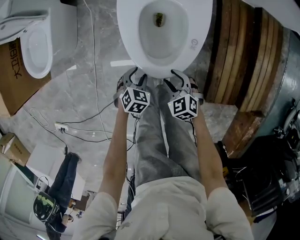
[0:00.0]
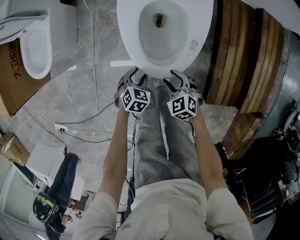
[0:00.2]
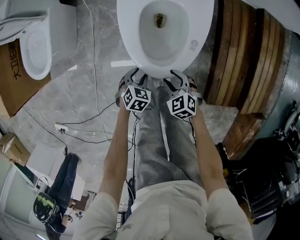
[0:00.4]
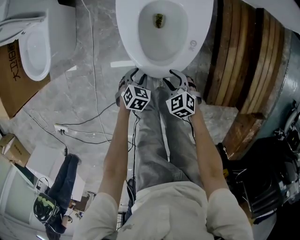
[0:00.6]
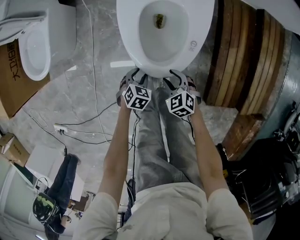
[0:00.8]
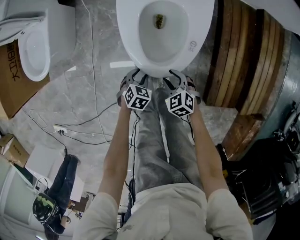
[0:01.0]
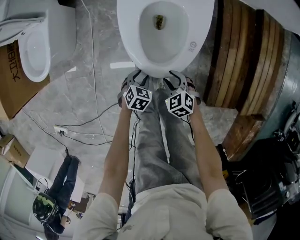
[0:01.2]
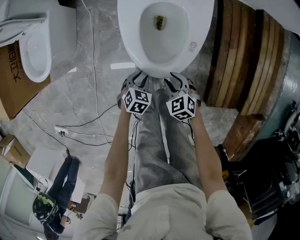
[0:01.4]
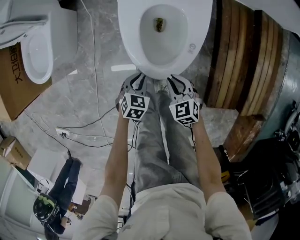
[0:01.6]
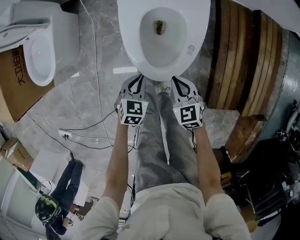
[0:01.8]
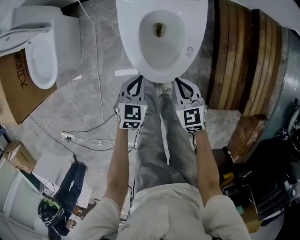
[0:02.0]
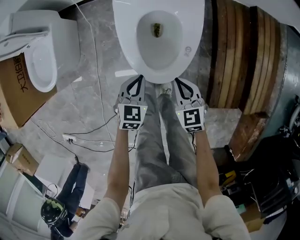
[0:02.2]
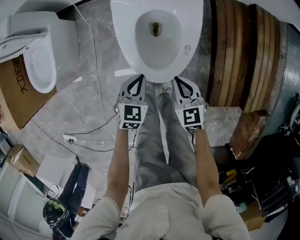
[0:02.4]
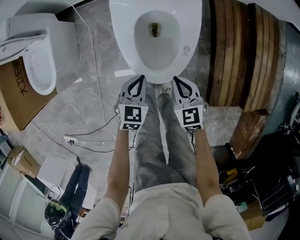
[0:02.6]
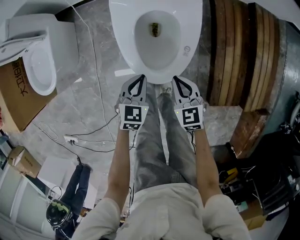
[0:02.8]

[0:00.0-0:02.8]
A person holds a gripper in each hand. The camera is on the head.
0:00.0 to 0:01.4: The grippers make only small movements.
0:01.4 to 0:02.8: Both grippers move upward and forward, some 15 cm. The left gripper closes its fingers; the right gripper rotates roughly 30 degrees, and closes its fingers.

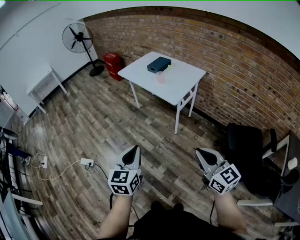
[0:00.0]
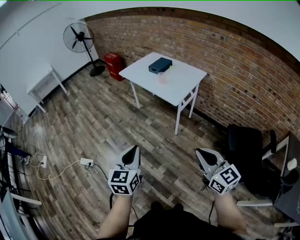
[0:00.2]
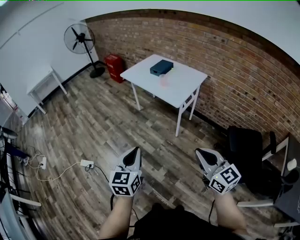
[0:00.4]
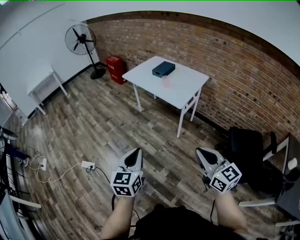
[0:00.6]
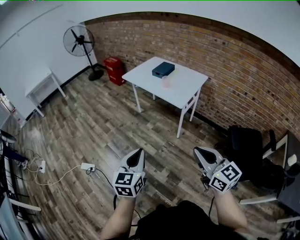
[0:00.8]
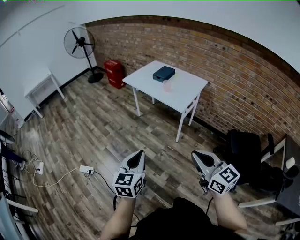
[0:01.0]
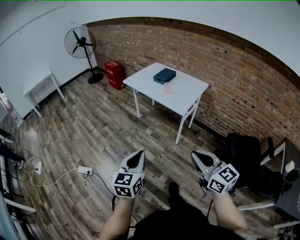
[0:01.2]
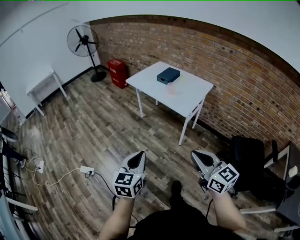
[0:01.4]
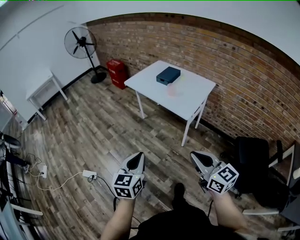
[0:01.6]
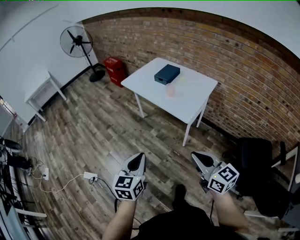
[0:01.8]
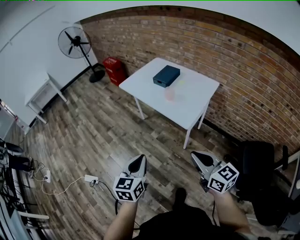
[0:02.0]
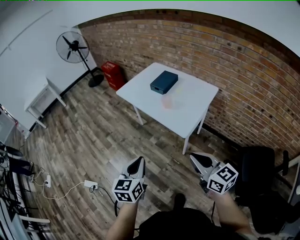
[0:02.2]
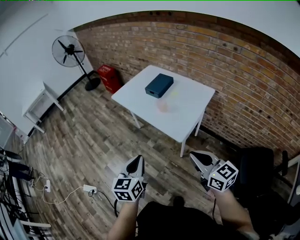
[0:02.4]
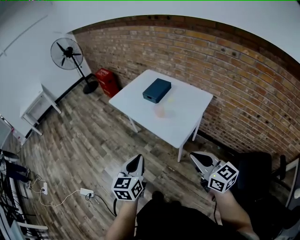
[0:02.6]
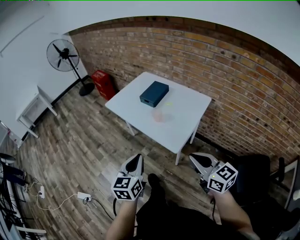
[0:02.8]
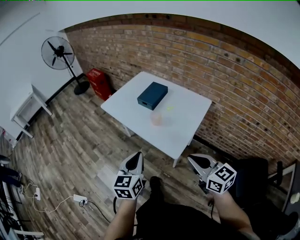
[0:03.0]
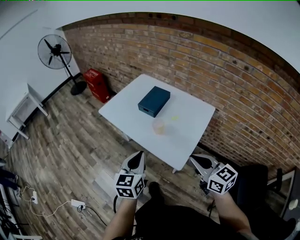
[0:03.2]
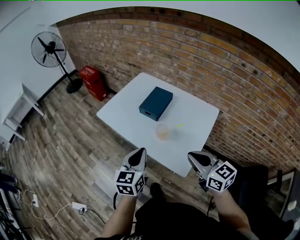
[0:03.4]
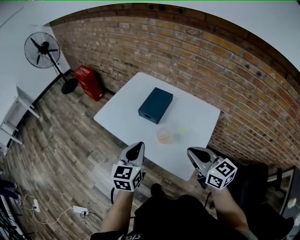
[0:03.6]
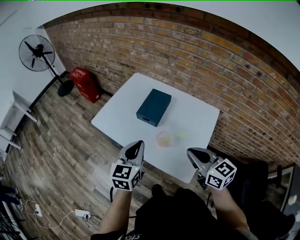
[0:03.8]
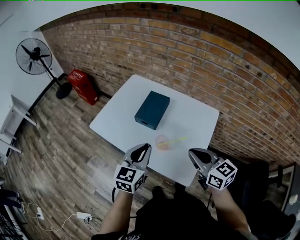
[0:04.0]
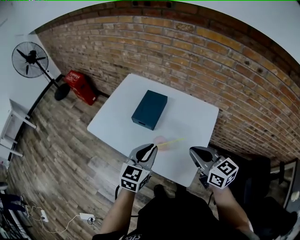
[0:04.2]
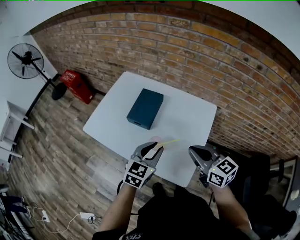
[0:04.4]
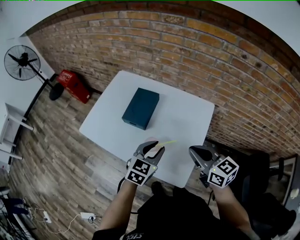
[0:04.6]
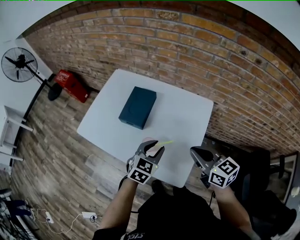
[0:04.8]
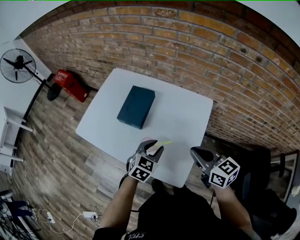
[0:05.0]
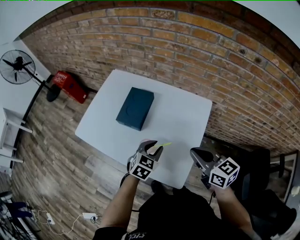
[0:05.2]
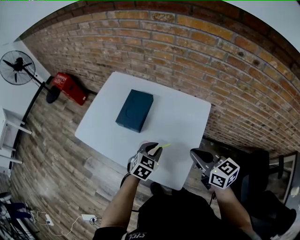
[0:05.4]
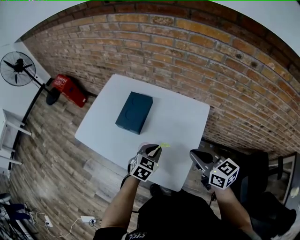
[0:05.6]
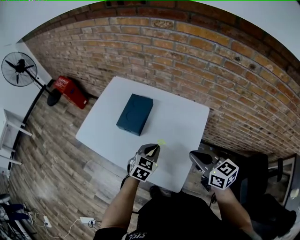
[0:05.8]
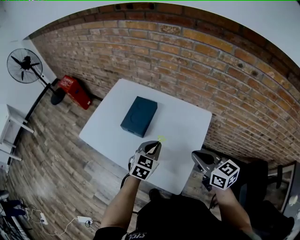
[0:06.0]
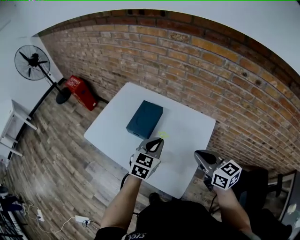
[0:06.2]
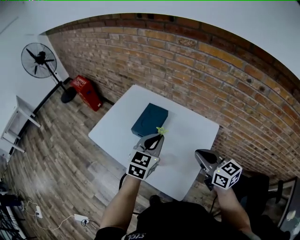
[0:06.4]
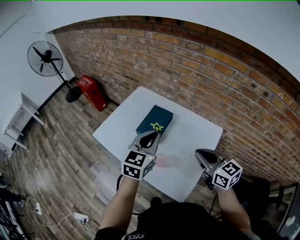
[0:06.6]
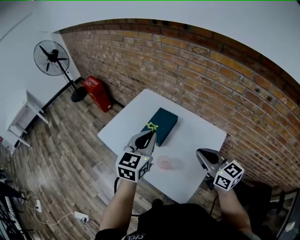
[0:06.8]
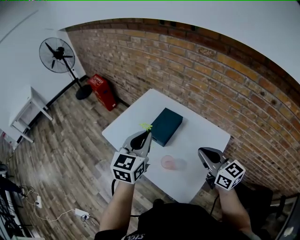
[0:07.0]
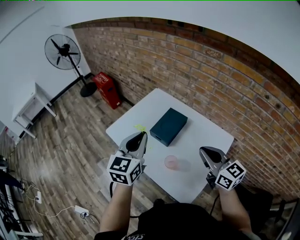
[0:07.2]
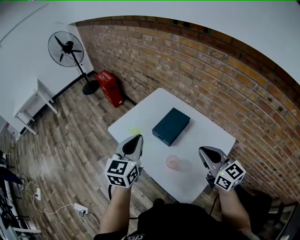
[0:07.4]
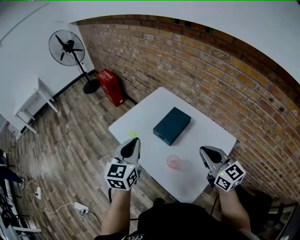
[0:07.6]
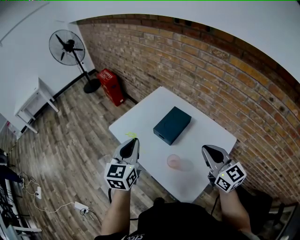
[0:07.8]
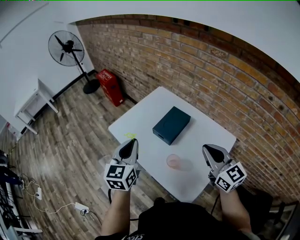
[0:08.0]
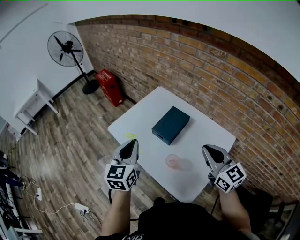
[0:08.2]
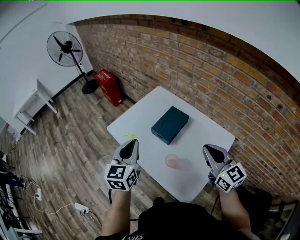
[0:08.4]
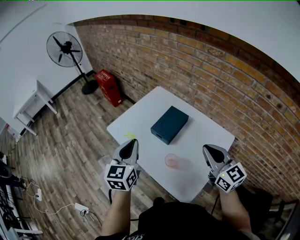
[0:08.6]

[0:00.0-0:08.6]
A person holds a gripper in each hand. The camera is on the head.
0:00.0 to 0:01.4: The left gripper goes some 10 cm to the left. The right gripper is displaced to the left and forward by approximately 15 cm.
0:01.4 to 0:02.8: Both grippers travel together forward and to the right, some 35 cm.
0:02.8 to 0:04.4: The grippers both shift forward by about 35 cm. The left gripper changes its angle by approximately 40 degrees, and opens its fingers.
0:04.4 to 0:05.8: The right gripper heads to the right, covering about 5 cm, while the left gripper heads downward and to the right, covering roughly 10 cm, and closes up.
0:05.8 to 0:07.2: The left gripper goes roughly 30 cm upward and to the left, and changes its angle by approximately 40 degrees. Meanwhile the right gripper travels upward, to the left and forward by some 15 cm, and swivels approximately 20 degrees.
0:07.2 to 0:08.6: The left gripper shifts by approximately 5 cm.

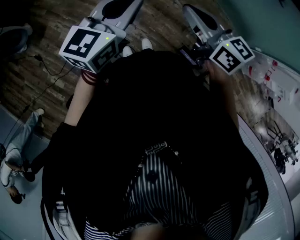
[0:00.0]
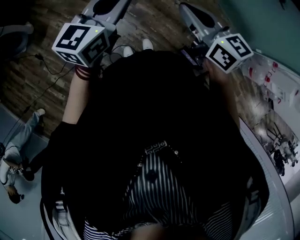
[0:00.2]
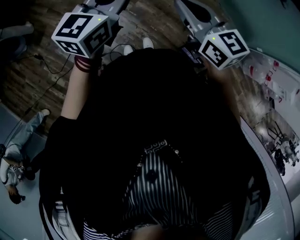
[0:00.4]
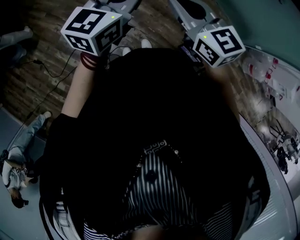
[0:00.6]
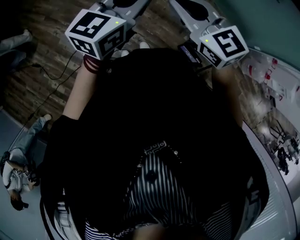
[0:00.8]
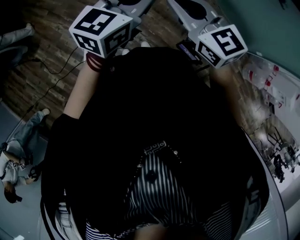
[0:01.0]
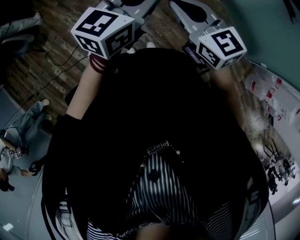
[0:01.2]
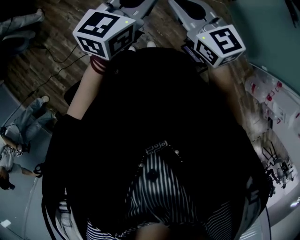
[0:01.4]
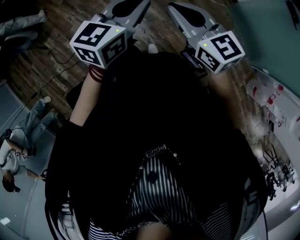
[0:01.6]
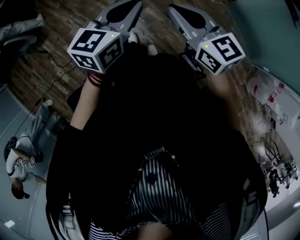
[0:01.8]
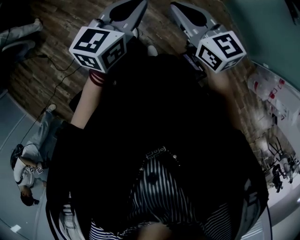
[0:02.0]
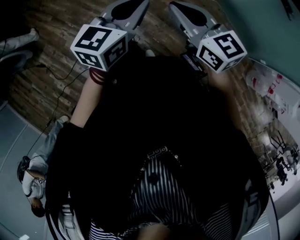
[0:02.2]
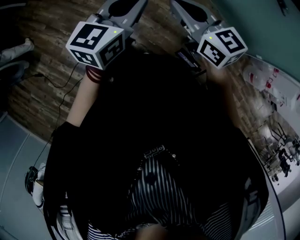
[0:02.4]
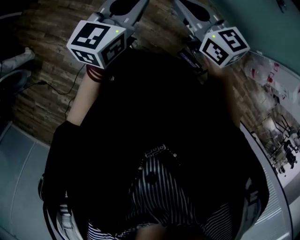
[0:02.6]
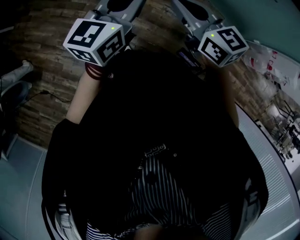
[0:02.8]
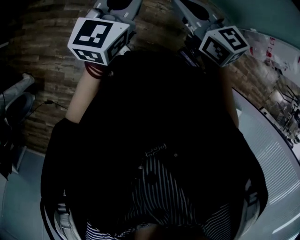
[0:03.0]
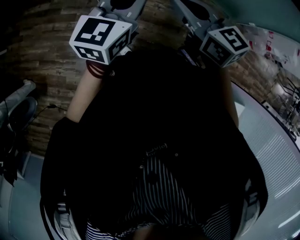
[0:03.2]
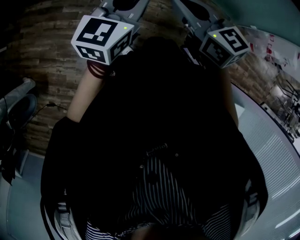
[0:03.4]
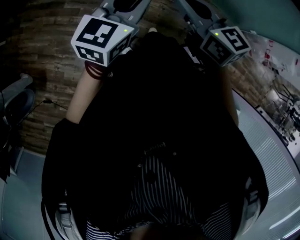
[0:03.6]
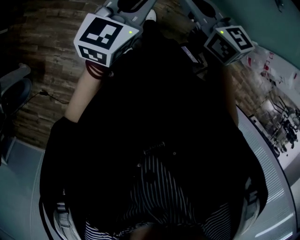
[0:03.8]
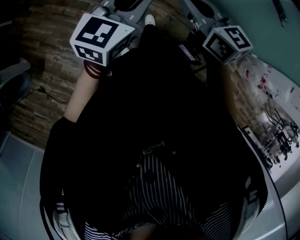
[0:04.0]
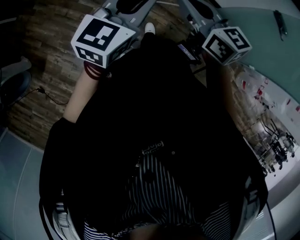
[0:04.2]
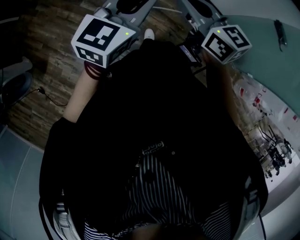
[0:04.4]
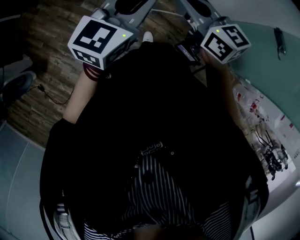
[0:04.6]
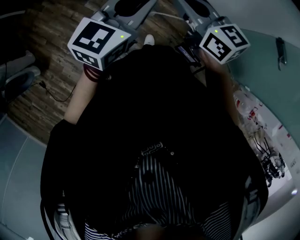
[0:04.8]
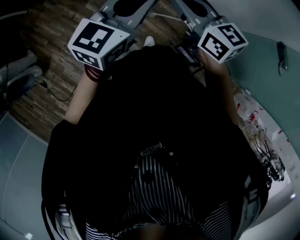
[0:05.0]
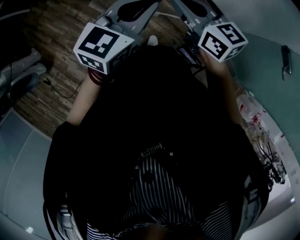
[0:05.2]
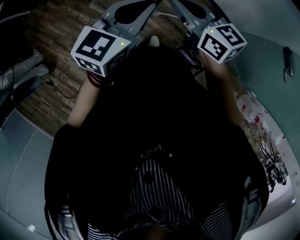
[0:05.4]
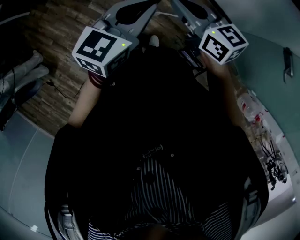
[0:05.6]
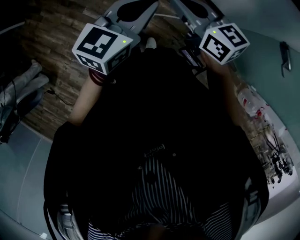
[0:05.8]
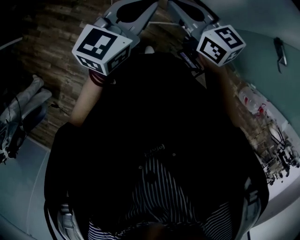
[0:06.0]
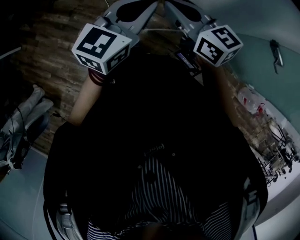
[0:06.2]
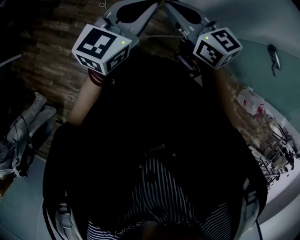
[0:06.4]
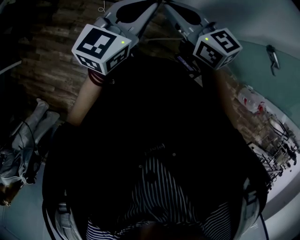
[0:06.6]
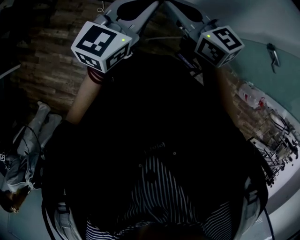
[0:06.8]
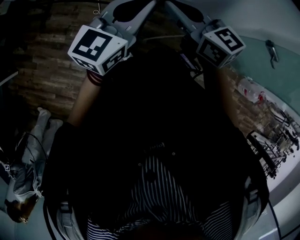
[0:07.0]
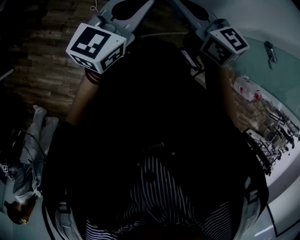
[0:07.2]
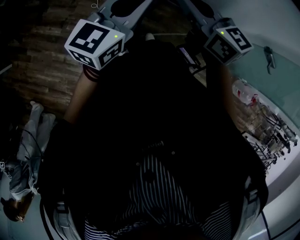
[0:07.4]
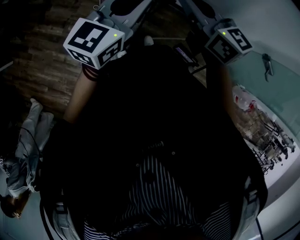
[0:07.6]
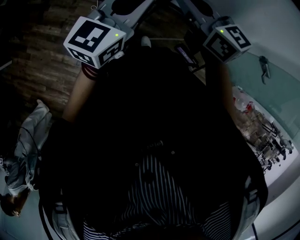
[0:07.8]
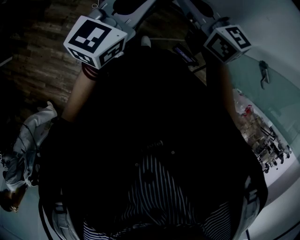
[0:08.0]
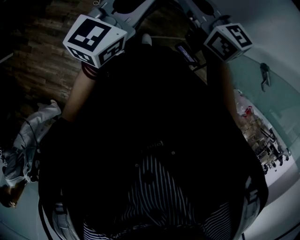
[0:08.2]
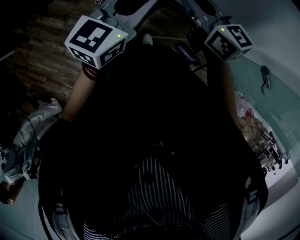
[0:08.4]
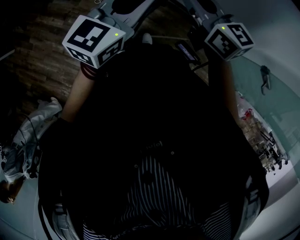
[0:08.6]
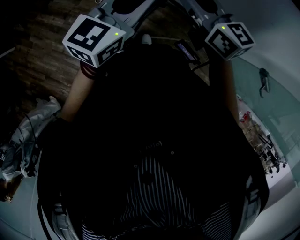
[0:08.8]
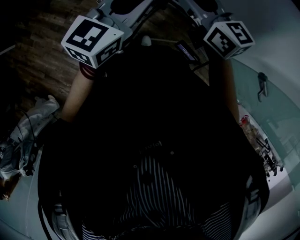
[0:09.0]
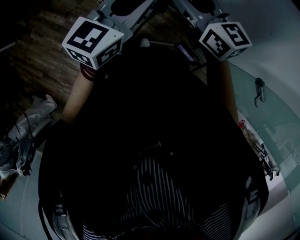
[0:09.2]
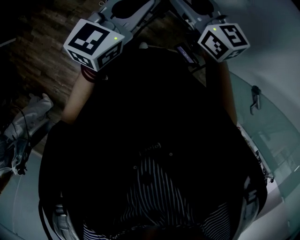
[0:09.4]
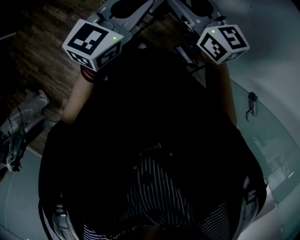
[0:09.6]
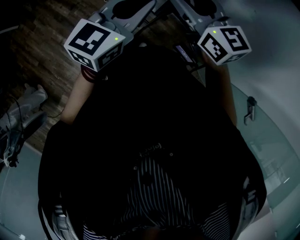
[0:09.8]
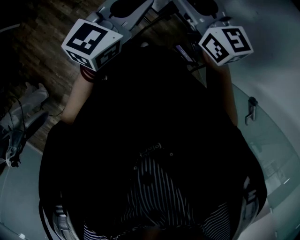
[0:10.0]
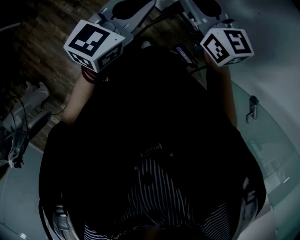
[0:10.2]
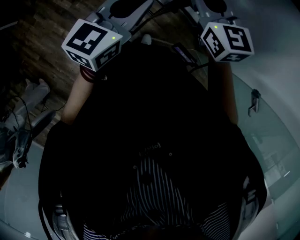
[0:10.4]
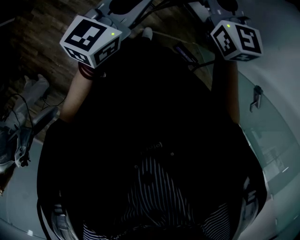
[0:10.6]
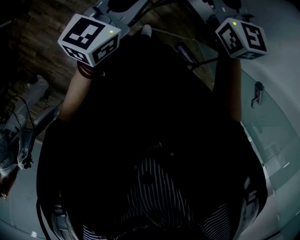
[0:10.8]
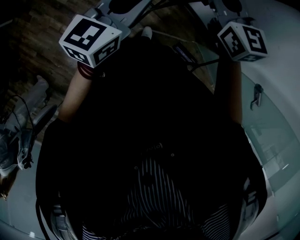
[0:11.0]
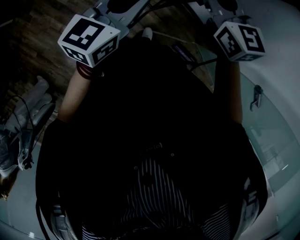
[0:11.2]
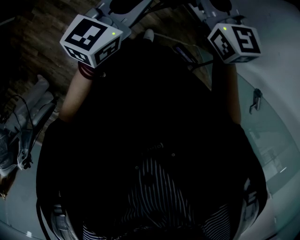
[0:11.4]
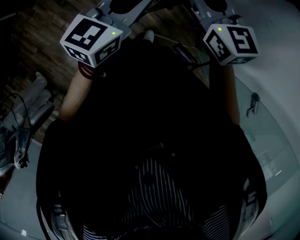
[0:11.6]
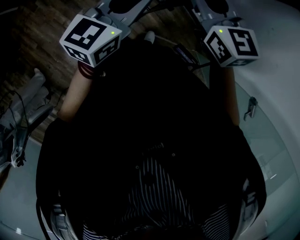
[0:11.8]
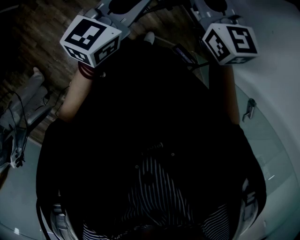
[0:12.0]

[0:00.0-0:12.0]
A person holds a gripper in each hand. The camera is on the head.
0:00.0 to 0:01.6: The left gripper heads to the right, covering approximately 5 cm.
0:01.6 to 0:03.0: The left gripper moves approximately 20 cm, and rotates approximately 30 degrees; the right gripper changes place by about 20 cm, and changes its angle by roughly 30 degrees.
0:03.0 to 0:04.4: Both grippers travel together forward, about 20 cm.
0:04.4 to 0:06.0: Both grippers travel together forward and to the right, roughly 25 cm.
0:06.0 to 0:07.6: The two grippers go about 20 cm forward and to the left.
0:07.6 to 0:09.0: The left gripper moves to the right, approximately 10 cm; the right gripper shifts approximately 15 cm to the right and forward, and opens its fingers.
0:09.0 to 0:10.4: The left gripper ends up roughly 5 cm from where it was. The right gripper shifts some 5 cm forward, and reaches about 5 cm to the left, then returns.
0:10.4 to 0:12.0: The two grippers go roughly 5 cm to the left.
